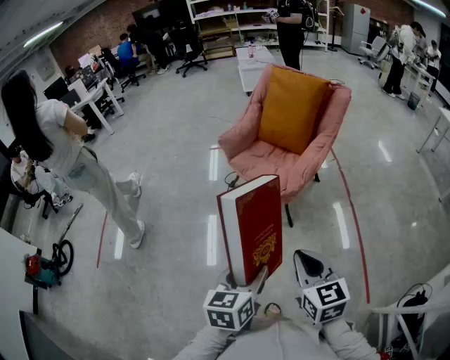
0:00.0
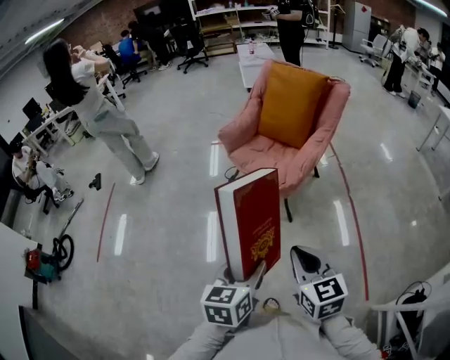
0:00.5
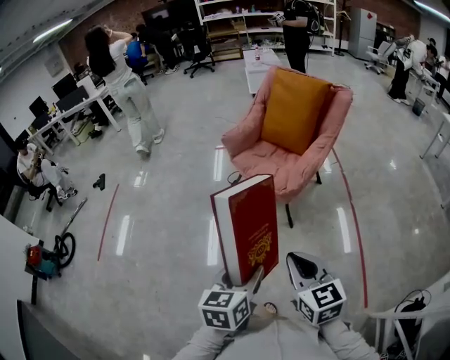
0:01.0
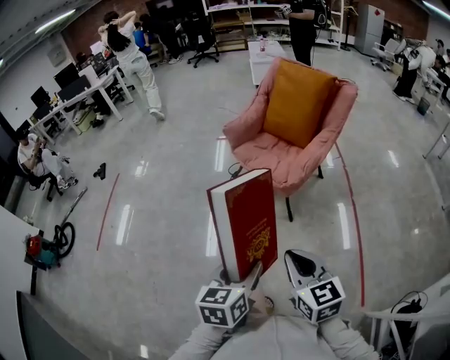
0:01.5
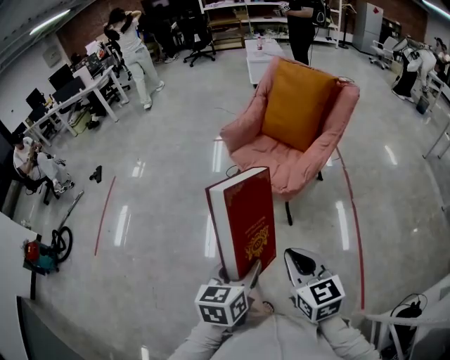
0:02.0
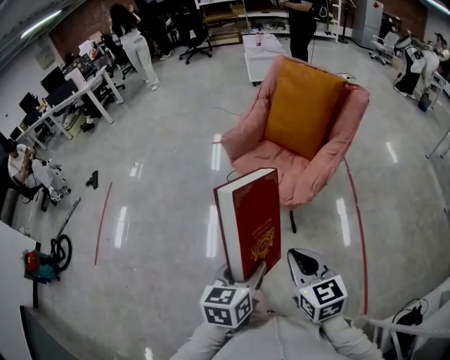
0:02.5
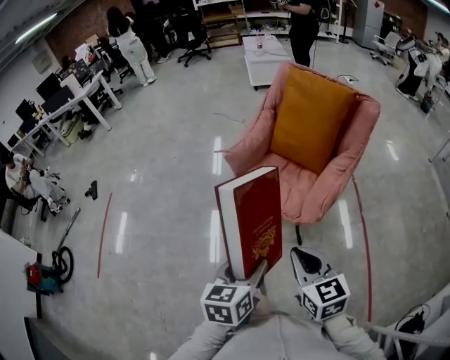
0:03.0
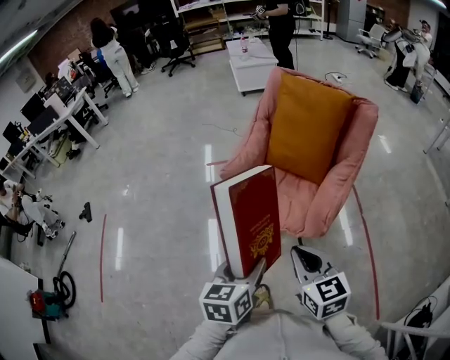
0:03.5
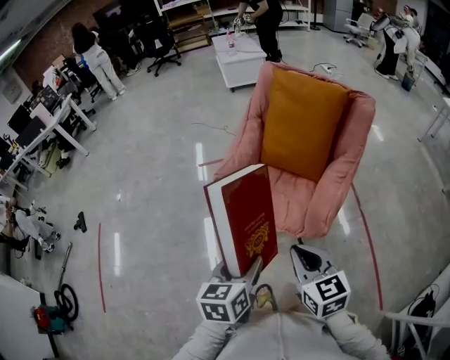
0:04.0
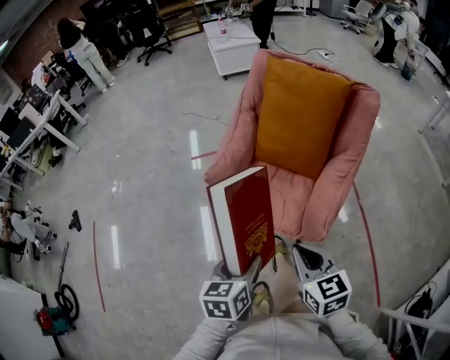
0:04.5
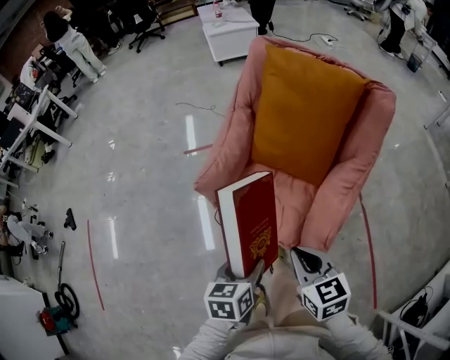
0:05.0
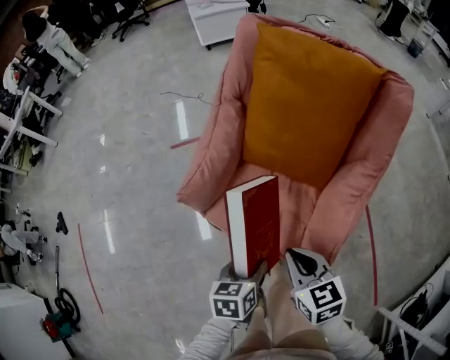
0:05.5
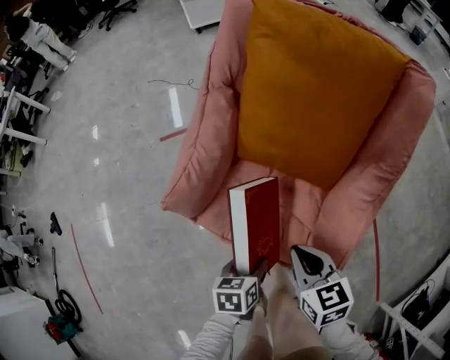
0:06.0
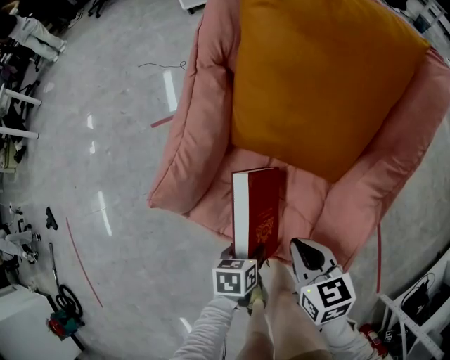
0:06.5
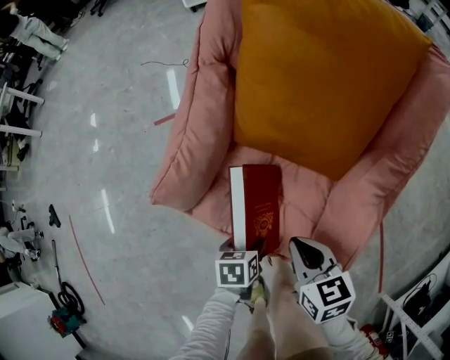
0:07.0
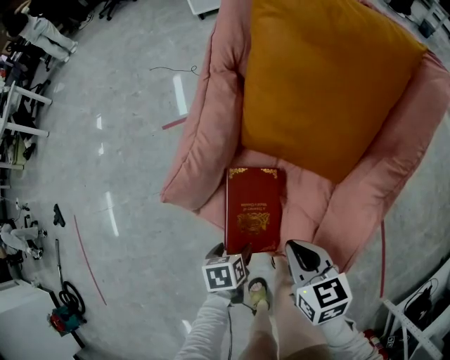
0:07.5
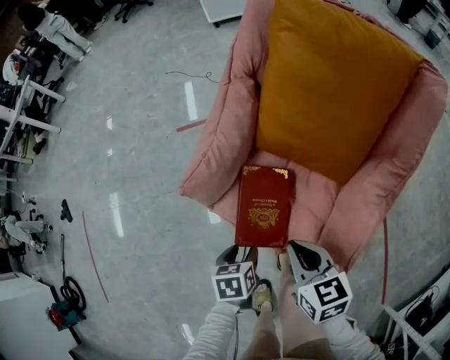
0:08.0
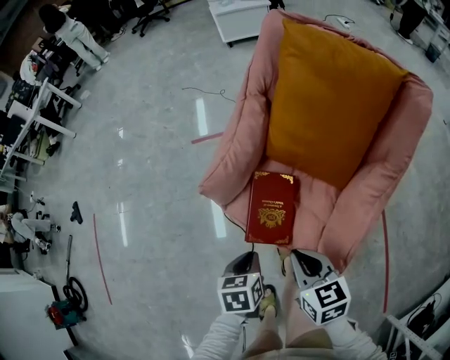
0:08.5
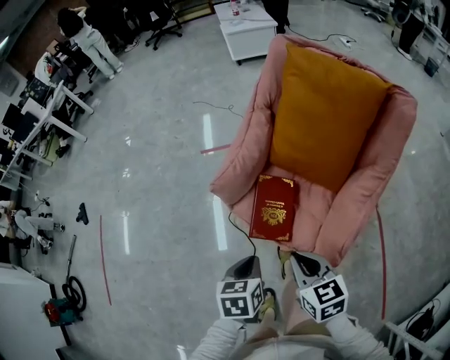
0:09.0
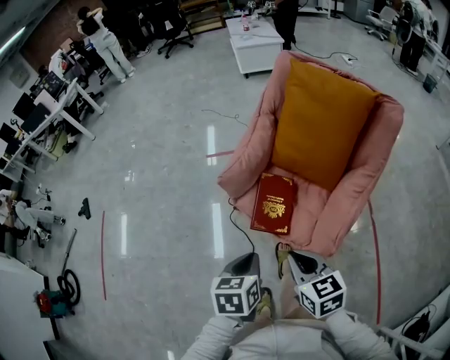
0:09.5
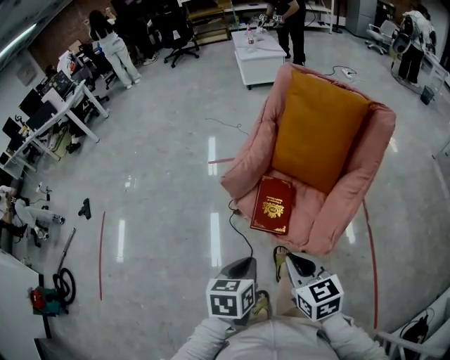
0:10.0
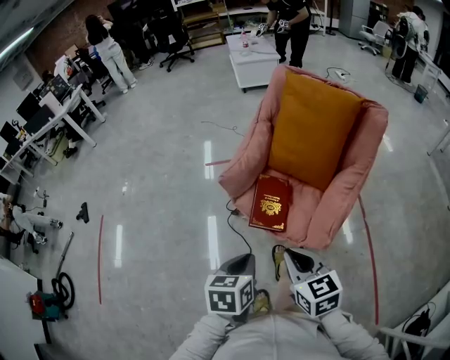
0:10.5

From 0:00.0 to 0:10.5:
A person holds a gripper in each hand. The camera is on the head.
From 0:00.0 to 0:02.0: There are only small adjustments of the grippers.
From 0:02.0 to 0:04.0: Both grippers travel together forward, roughly 35 cm.
From 0:04.0 to 0:06.5: The right gripper travels forward and downward by roughly 35 cm, and rotates roughly 20 degrees, while the left gripper moves downward and forward, roughly 40 cm, and turns by approximately 40 degrees.
From 0:06.5 to 0:08.5: The left gripper shifts approximately 15 cm upward and to the left, changes its angle by about 20 degrees, and closes. The right gripper shifts about 15 cm upward, backward and to the left.
From 0:08.5 to 0:10.5: The right gripper moves backward and upward, roughly 20 cm. The left gripper moves upward and backward, about 25 cm.

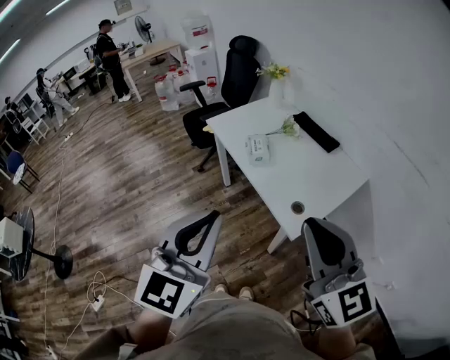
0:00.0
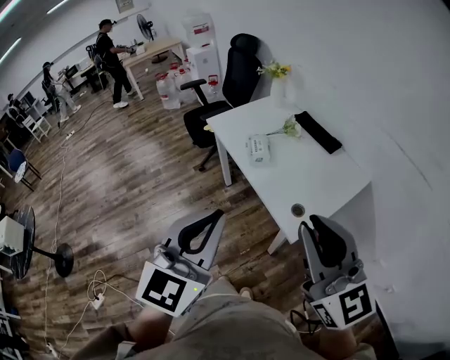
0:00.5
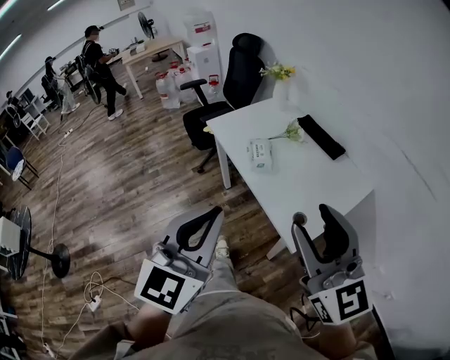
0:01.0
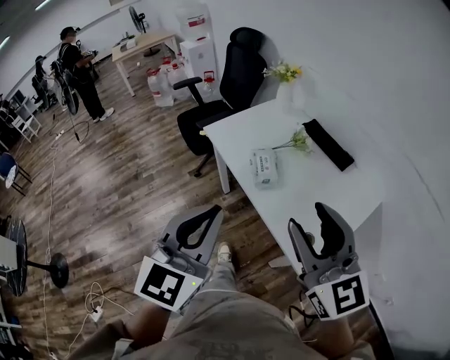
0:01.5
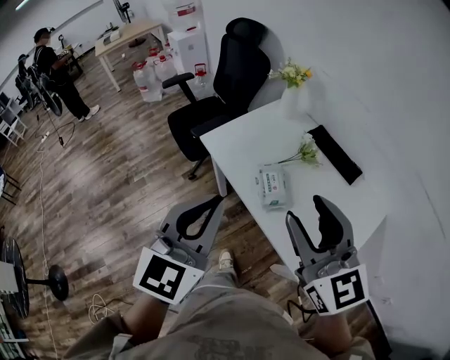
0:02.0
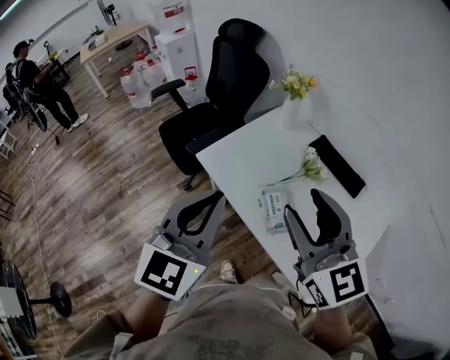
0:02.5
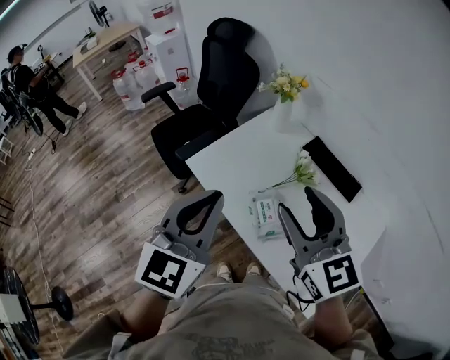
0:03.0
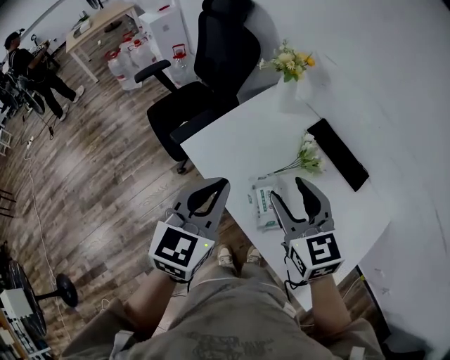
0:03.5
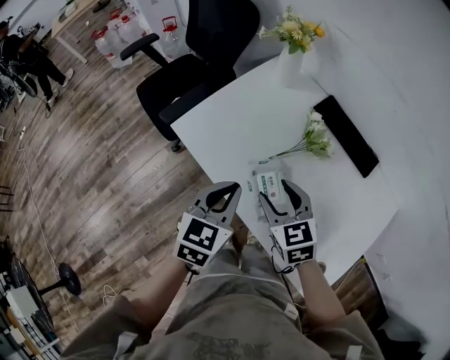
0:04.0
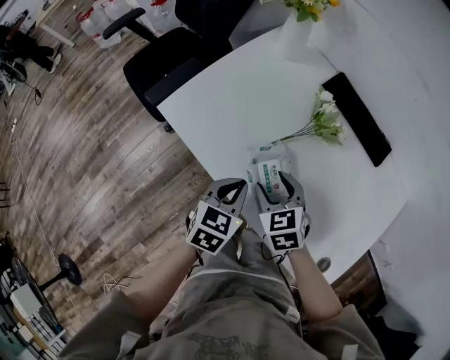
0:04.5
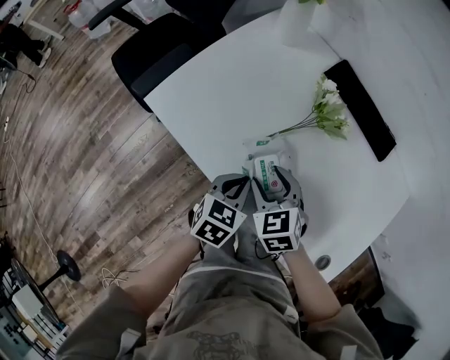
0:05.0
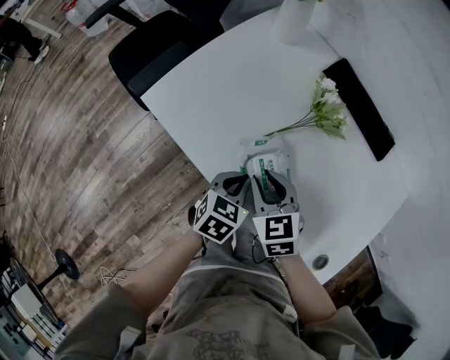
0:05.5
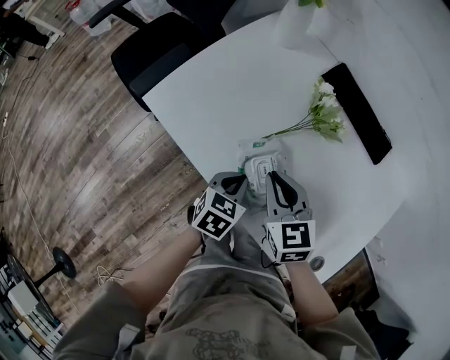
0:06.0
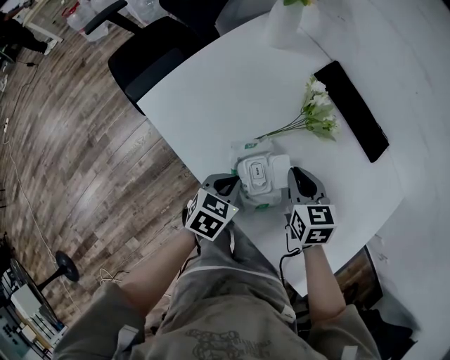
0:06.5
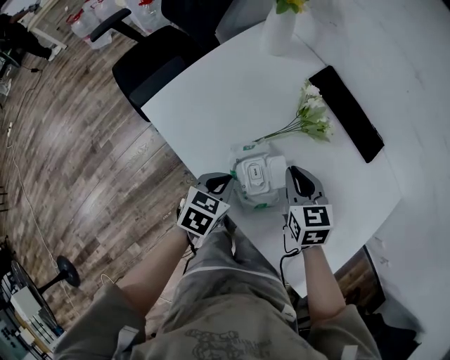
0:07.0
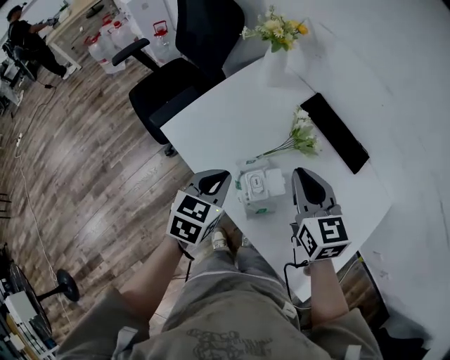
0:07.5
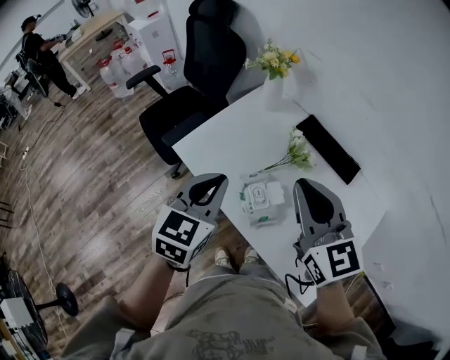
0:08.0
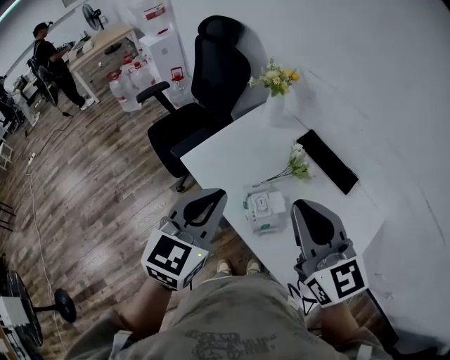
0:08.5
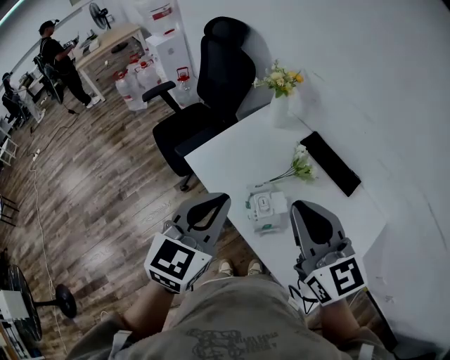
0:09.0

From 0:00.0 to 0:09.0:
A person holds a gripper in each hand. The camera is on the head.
From 0:00.0 to 0:02.0: Both grippers travel together forward, about 35 cm. The right gripper opens its fingers.
From 0:02.0 to 0:04.5: Both grippers travel together downward and forward, approximately 40 cm. The left gripper angles its fingers downward, by approximately 40 degrees. Meanwhile the right gripper points its fingers about 40 degrees further downward.
From 0:04.5 to 0:07.0: The left gripper is displaced downward by about 5 cm. The right gripper is displaced to the right and forward by about 10 cm, and closes up.
From 0:07.0 to 0:09.0: Both grippers travel together upward, some 35 cm. The left gripper angles its fingers upward, by about 30 degrees, while the right gripper tips its fingers upward by some 30 degrees.

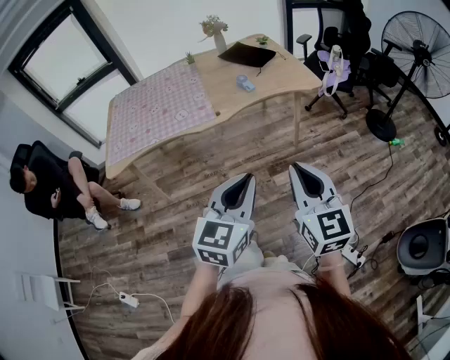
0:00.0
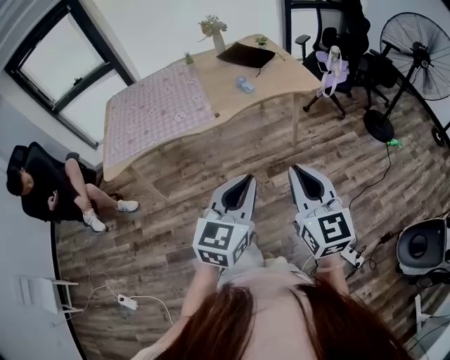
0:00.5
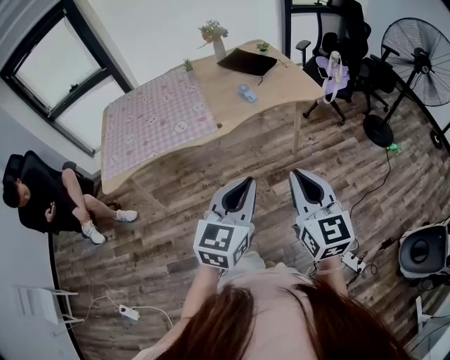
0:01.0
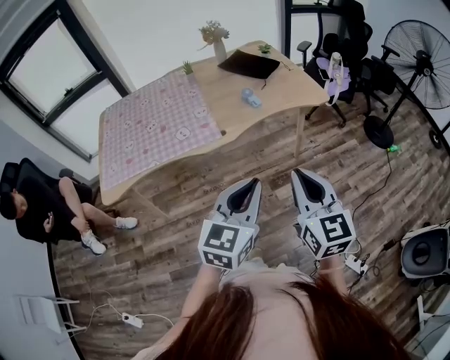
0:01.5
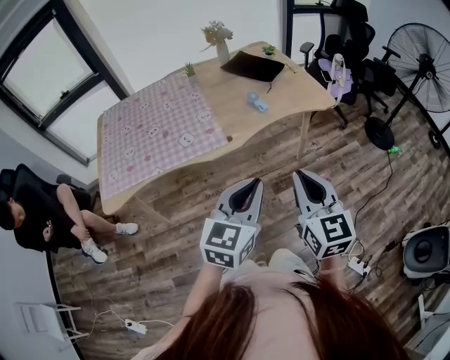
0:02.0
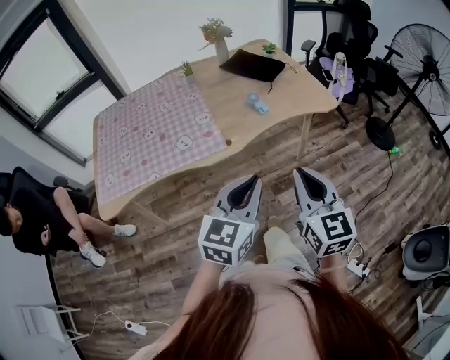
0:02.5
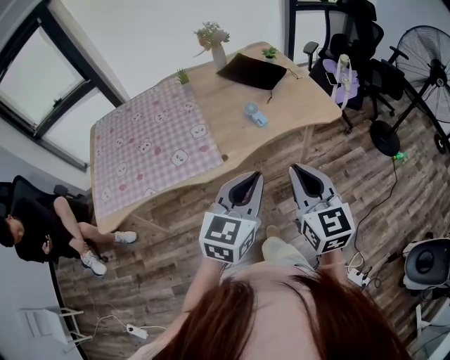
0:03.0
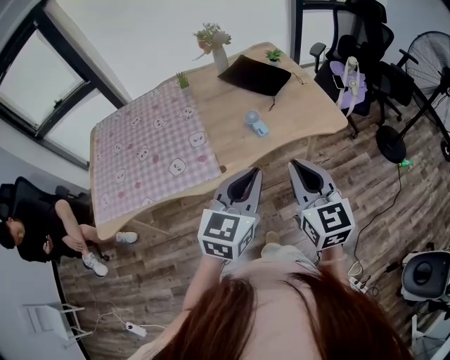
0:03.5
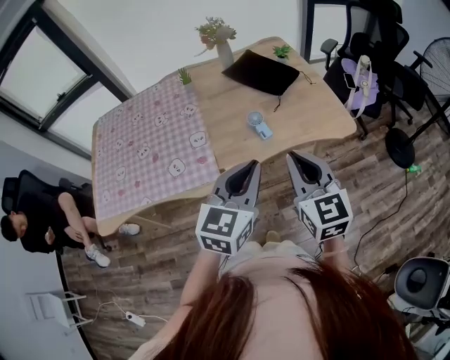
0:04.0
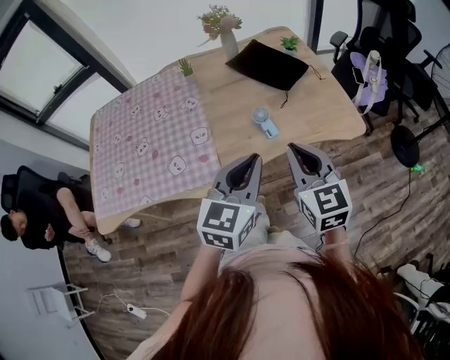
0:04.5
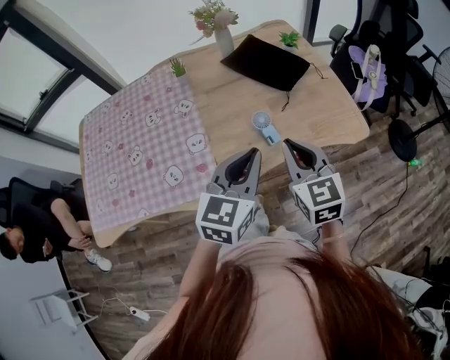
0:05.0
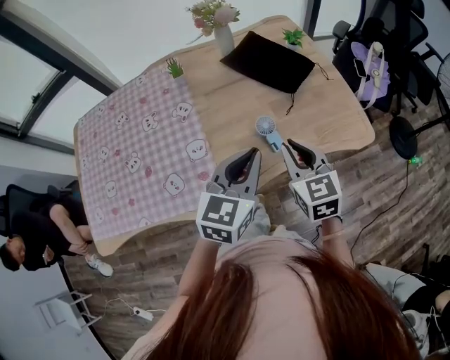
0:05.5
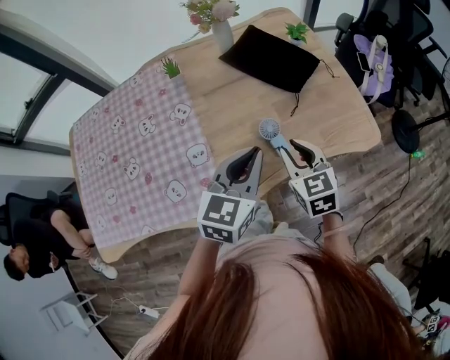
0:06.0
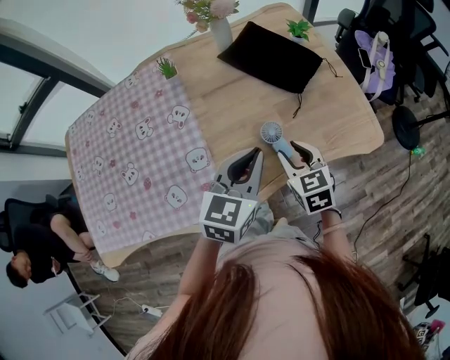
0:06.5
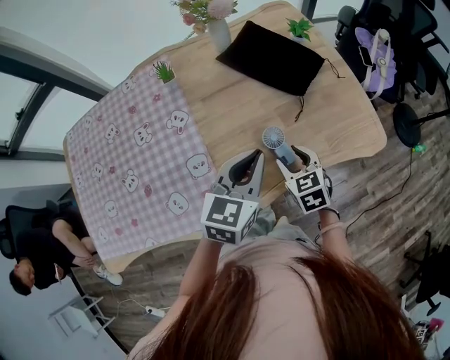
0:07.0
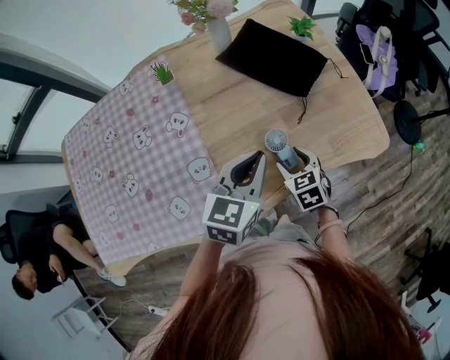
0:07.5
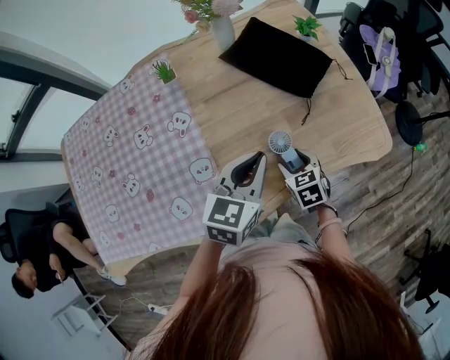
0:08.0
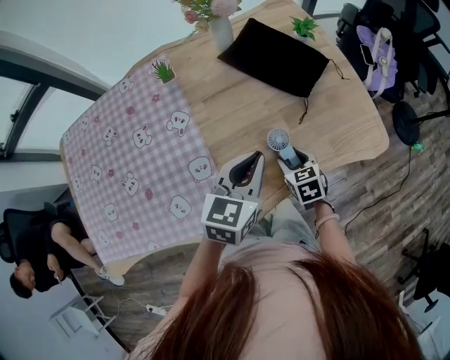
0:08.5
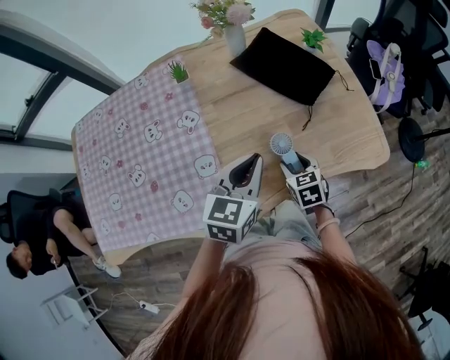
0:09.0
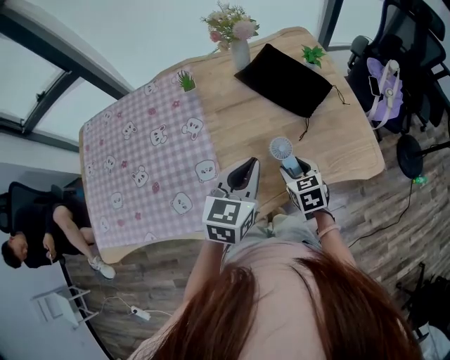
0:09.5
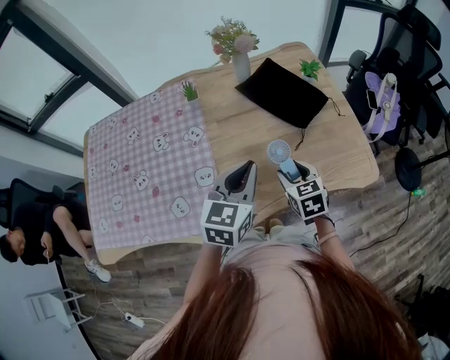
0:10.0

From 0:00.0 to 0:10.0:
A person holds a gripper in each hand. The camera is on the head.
From 0:00.0 to 0:02.0: Both grippers move forward and to the left, roughly 20 cm.
From 0:02.0 to 0:04.0: Both grippers travel together forward, some 30 cm.
From 0:04.0 to 0:06.0: The left gripper is displaced forward by about 20 cm, while the right gripper travels forward and downward by some 25 cm, changes its angle by some 20 degrees, and opens up.
From 0:06.0 to 0:08.0: The right gripper shifts roughly 15 cm downward, swivels some 20 degrees, and opens. The left gripper moves forward and downward, approximately 10 cm.
From 0:08.0 to 0:10.0: The right gripper shifts some 10 cm upward. Meanwhile the left gripper shifts approximately 5 cm upward.
